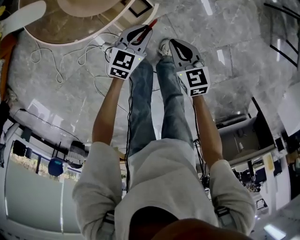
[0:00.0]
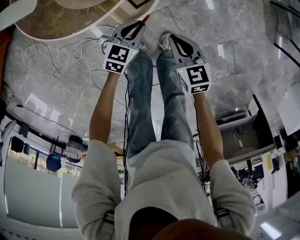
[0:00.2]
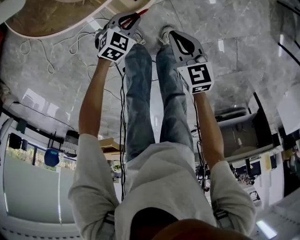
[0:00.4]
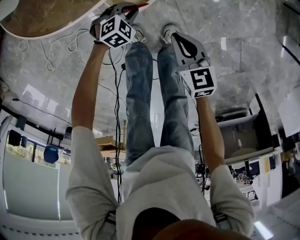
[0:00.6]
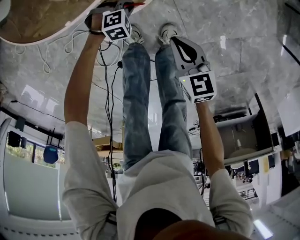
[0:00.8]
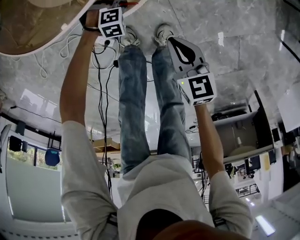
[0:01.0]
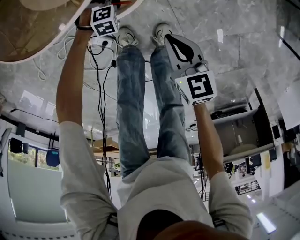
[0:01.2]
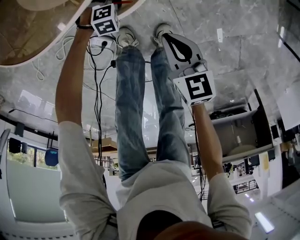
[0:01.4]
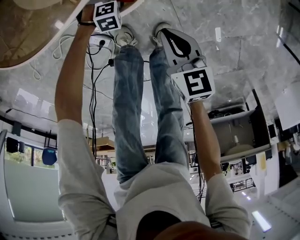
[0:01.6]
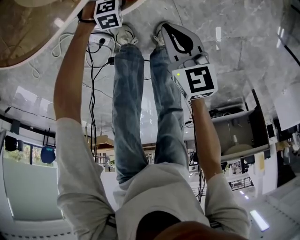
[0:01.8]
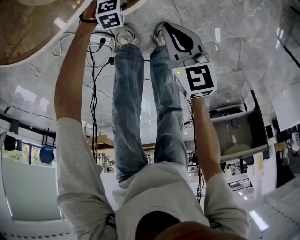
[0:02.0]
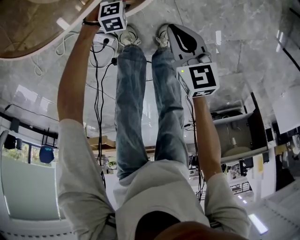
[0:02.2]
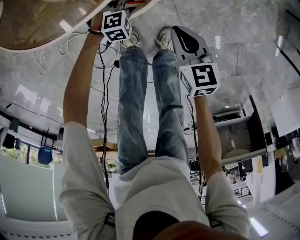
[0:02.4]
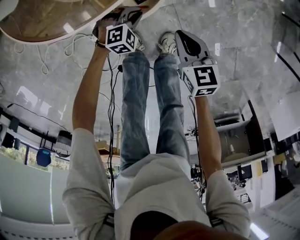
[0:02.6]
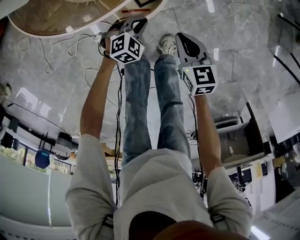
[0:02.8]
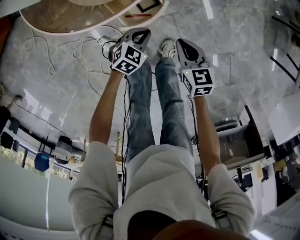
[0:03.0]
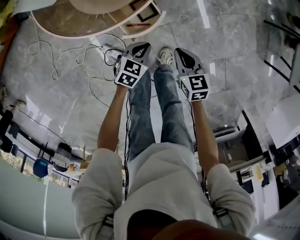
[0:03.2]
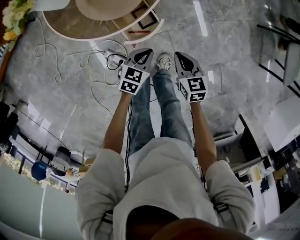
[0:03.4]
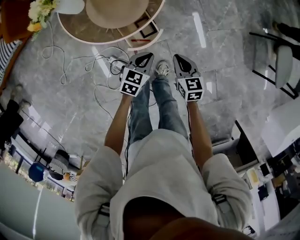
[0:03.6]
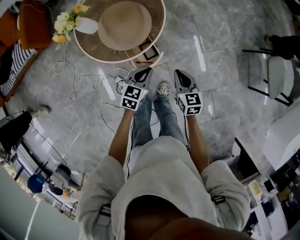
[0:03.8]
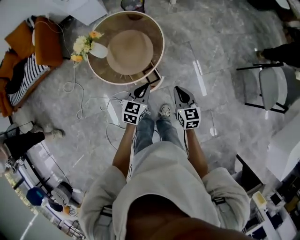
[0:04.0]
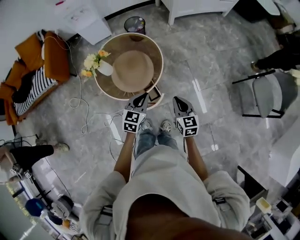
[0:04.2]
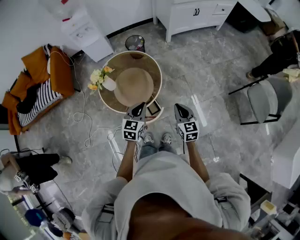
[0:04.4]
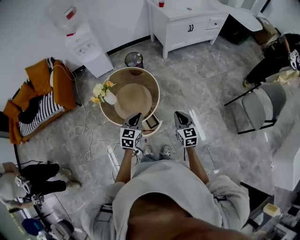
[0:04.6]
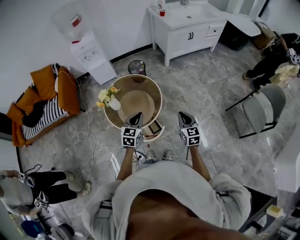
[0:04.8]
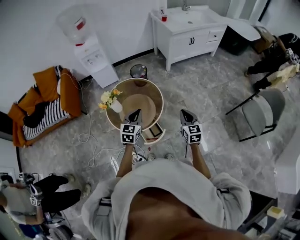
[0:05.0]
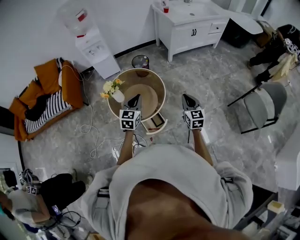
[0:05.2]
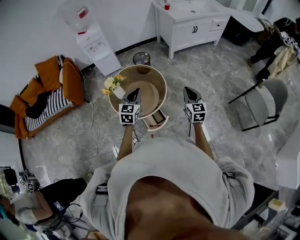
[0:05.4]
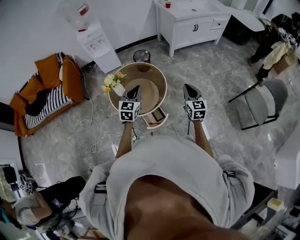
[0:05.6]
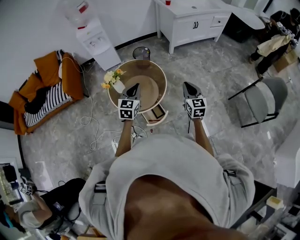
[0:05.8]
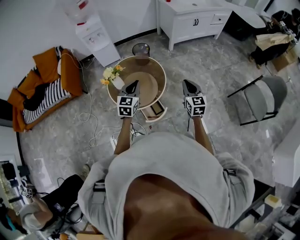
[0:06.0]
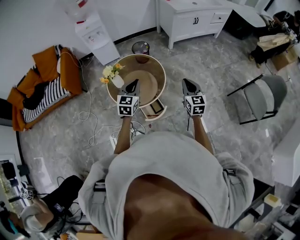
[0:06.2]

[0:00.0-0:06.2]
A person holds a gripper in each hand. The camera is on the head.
0:00.0 to 0:01.6: The left gripper goes approximately 35 cm downward, and points its fingers approximately 40 degrees further downward; the right gripper shifts roughly 15 cm downward.
0:01.6 to 0:03.2: The left gripper shifts some 35 cm upward, twists approximately 50 degrees counterclockwise, seen from behind, and opens, then closes once more, while the right gripper heads upward, covering roughly 15 cm.
0:03.2 to 0:04.6: The grippers both shift upward by about 50 cm. The right gripper rotates some 30 degrees. The left gripper turns by approximately 30 degrees.
0:04.6 to 0:06.2: The right gripper is displaced upward by roughly 10 cm; the left gripper is displaced upward and to the left by approximately 10 cm.

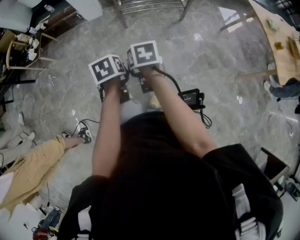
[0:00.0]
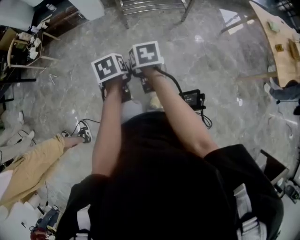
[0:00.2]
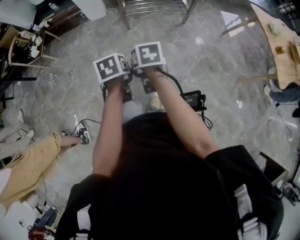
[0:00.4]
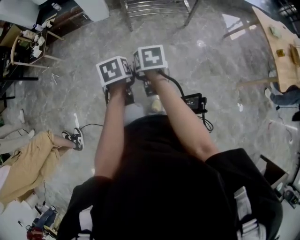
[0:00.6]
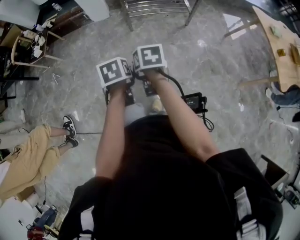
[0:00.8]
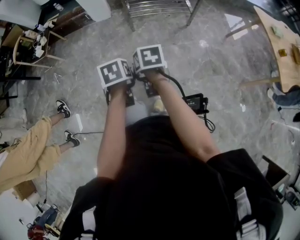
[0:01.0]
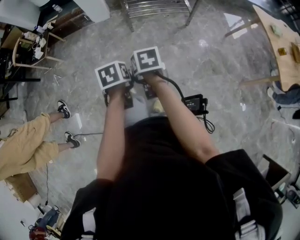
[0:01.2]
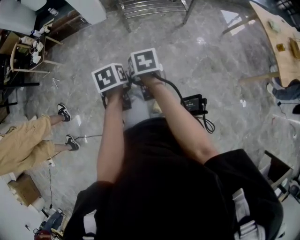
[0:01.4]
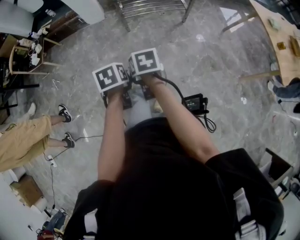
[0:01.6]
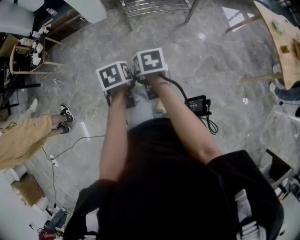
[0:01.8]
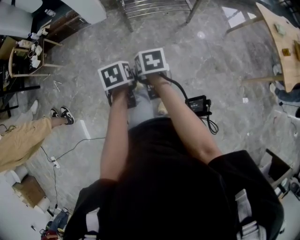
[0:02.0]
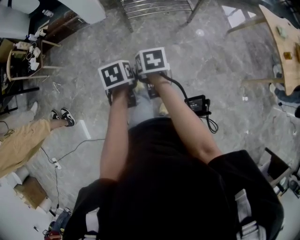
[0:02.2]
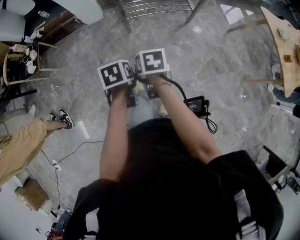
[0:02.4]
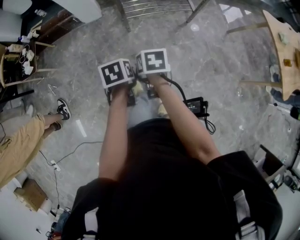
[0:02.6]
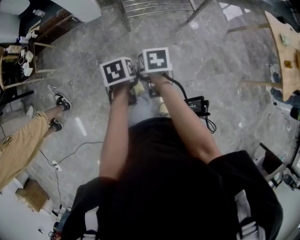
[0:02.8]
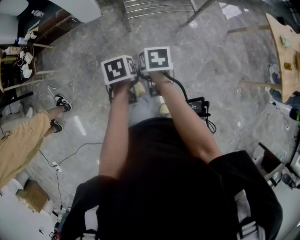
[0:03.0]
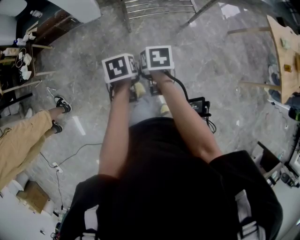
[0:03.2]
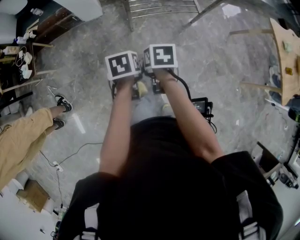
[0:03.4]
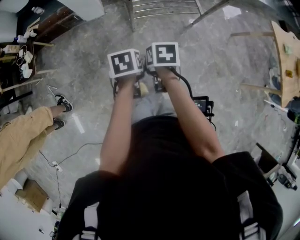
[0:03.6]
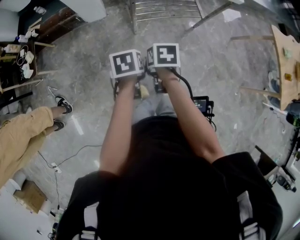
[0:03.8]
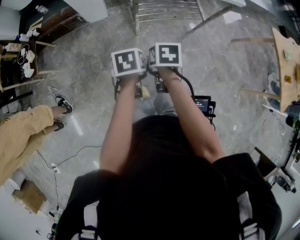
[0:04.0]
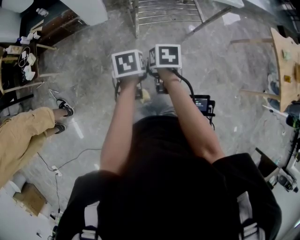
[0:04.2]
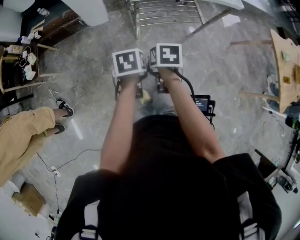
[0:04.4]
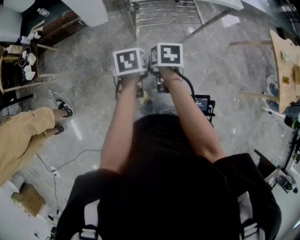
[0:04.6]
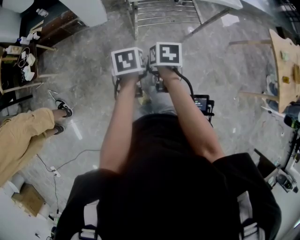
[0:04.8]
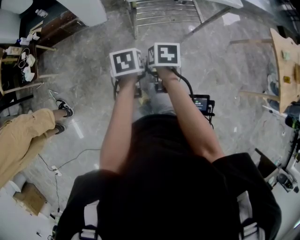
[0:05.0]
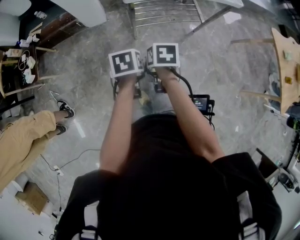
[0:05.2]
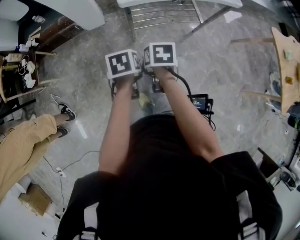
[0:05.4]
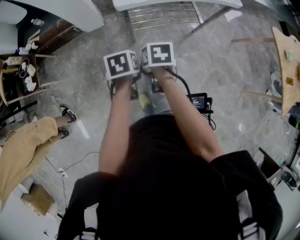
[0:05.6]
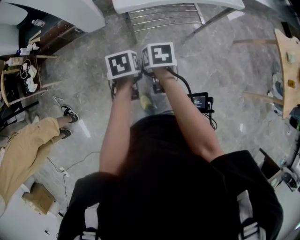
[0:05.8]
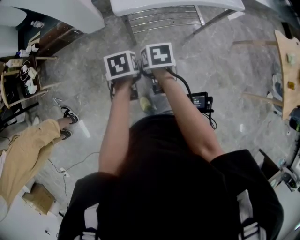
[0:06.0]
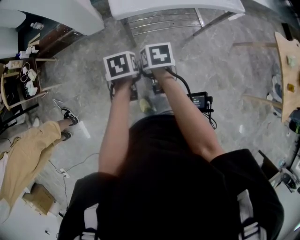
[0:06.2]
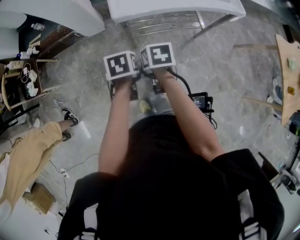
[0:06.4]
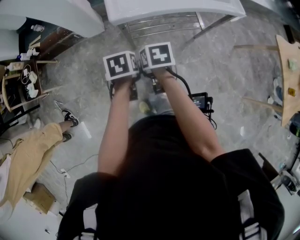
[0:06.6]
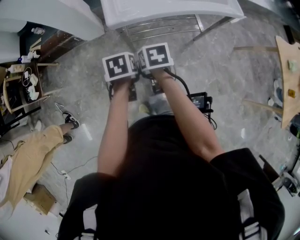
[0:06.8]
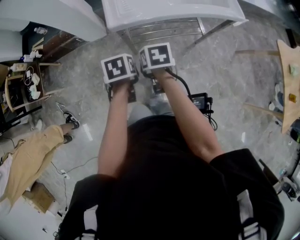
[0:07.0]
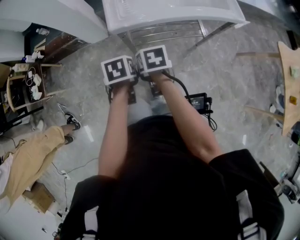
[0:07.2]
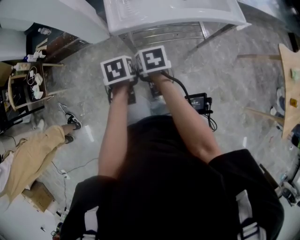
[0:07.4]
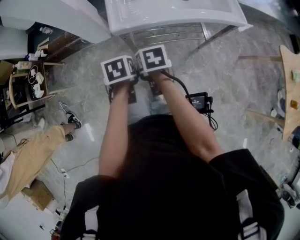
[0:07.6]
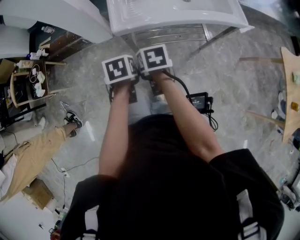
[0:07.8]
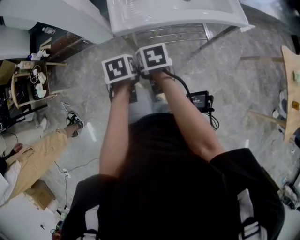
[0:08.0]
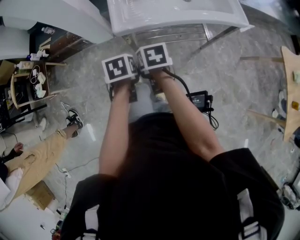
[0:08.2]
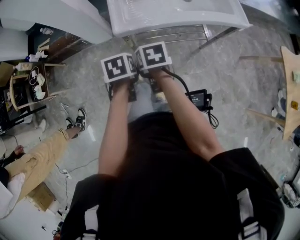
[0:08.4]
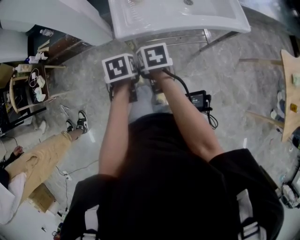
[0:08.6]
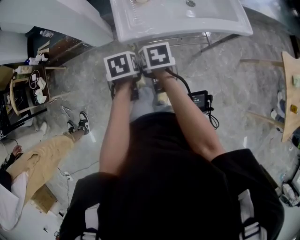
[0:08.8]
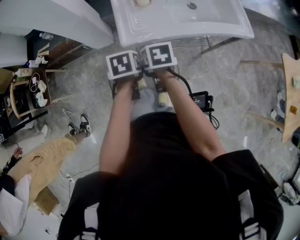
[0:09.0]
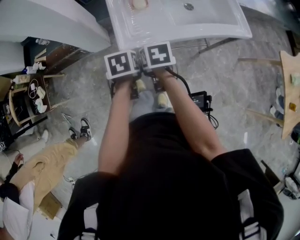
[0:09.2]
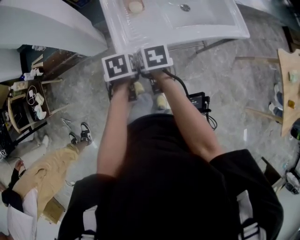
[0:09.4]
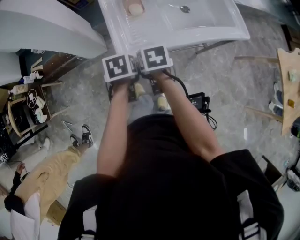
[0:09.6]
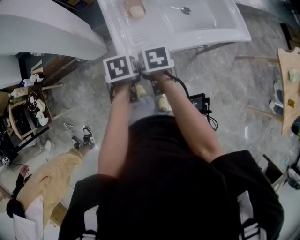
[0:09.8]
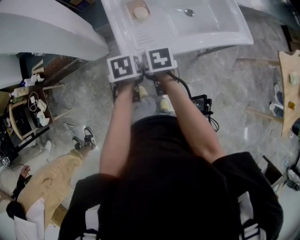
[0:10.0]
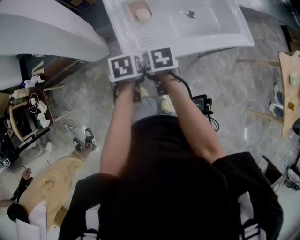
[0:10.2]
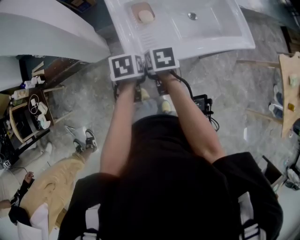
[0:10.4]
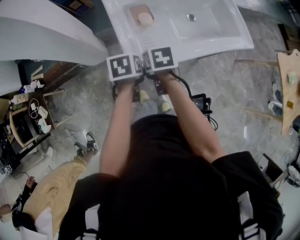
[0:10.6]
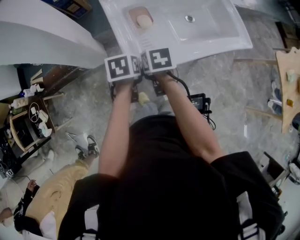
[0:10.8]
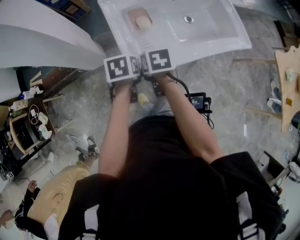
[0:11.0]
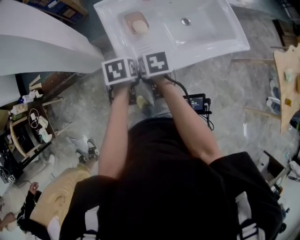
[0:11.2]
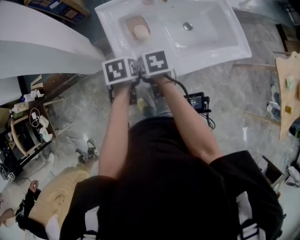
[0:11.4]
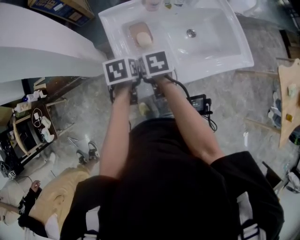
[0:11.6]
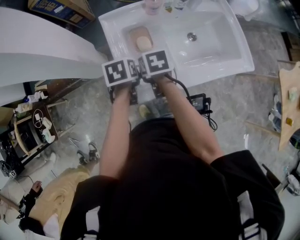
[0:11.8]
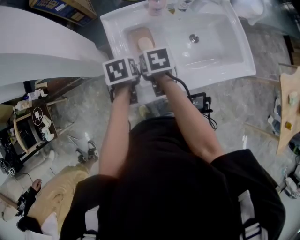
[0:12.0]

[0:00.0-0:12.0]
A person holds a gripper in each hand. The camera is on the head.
0:00.0 to 0:01.6: The grippers make only small movements.
0:01.6 to 0:03.0: Both grippers move forward, some 25 cm.
0:03.0 to 0:04.4: The right gripper shifts about 10 cm forward and to the left, while the left gripper travels forward by some 10 cm.
0:04.4 to 0:06.0: The two grippers go approximately 10 cm forward.
0:06.0 to 0:07.6: The right gripper is displaced forward by some 10 cm; the left gripper is displaced forward and to the right by some 10 cm.
0:07.6 to 0:09.0: The grippers both shift forward by some 10 cm.
0:09.0 to 0:10.4: The grippers both shift forward by some 10 cm. The left gripper opens.
0:10.4 to 0:12.0: The grippers both shift forward by about 15 cm. The left gripper closes its fingers.

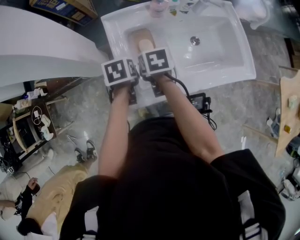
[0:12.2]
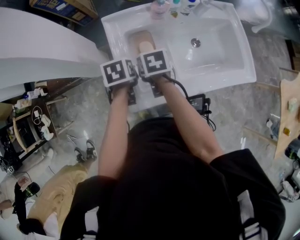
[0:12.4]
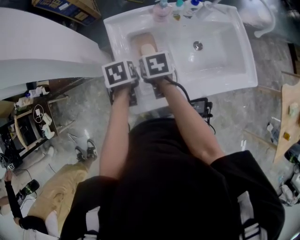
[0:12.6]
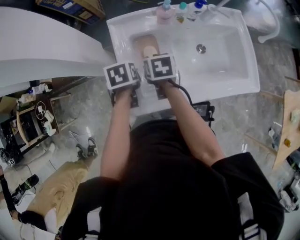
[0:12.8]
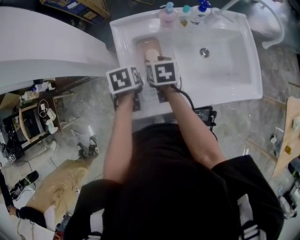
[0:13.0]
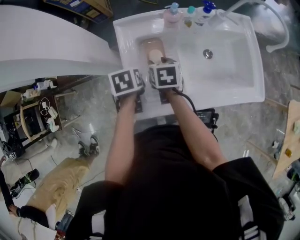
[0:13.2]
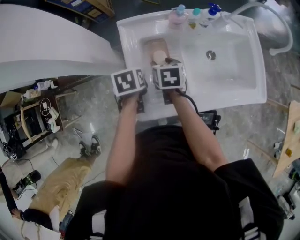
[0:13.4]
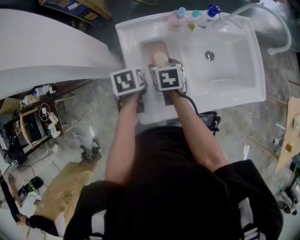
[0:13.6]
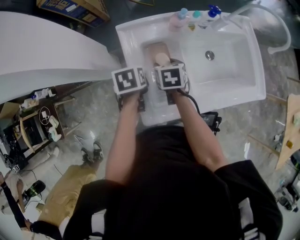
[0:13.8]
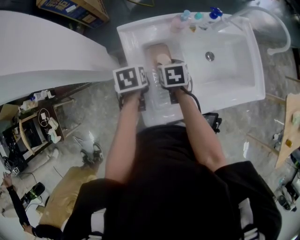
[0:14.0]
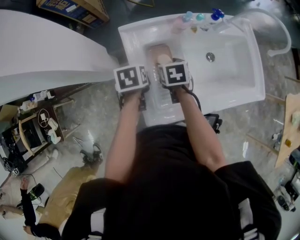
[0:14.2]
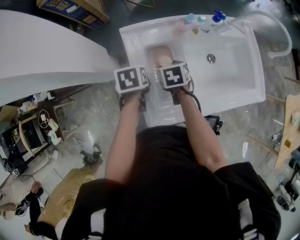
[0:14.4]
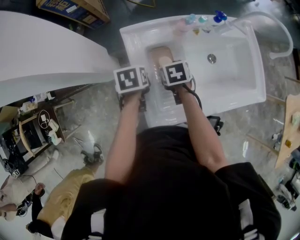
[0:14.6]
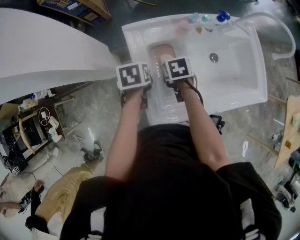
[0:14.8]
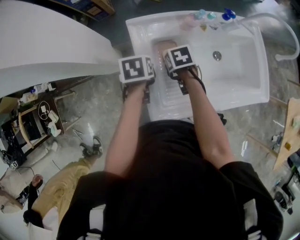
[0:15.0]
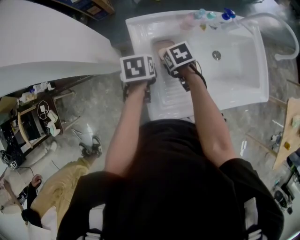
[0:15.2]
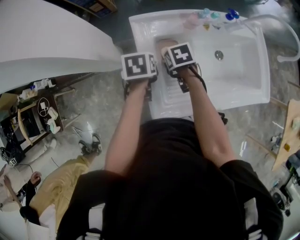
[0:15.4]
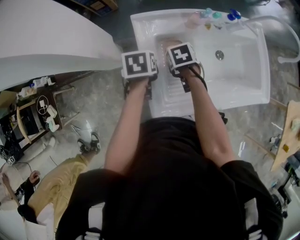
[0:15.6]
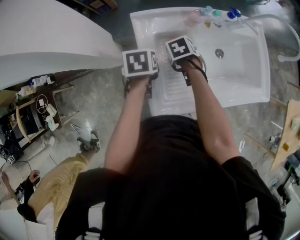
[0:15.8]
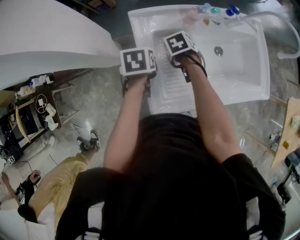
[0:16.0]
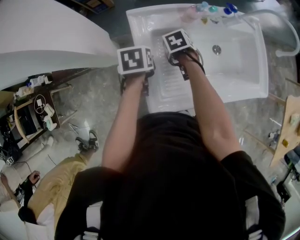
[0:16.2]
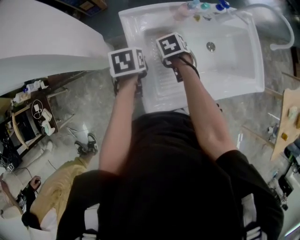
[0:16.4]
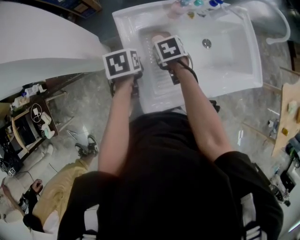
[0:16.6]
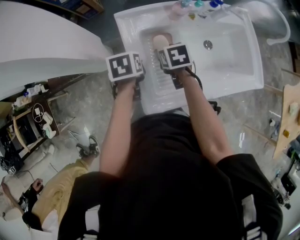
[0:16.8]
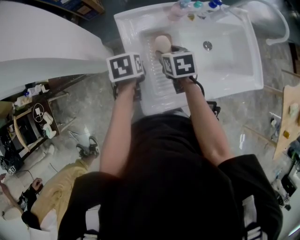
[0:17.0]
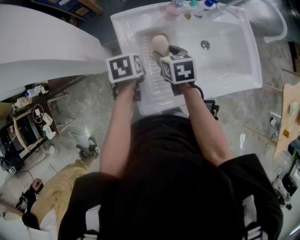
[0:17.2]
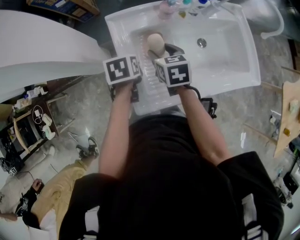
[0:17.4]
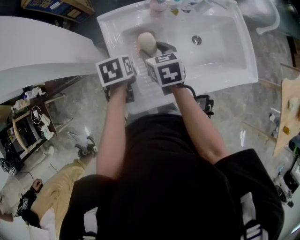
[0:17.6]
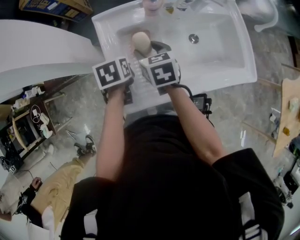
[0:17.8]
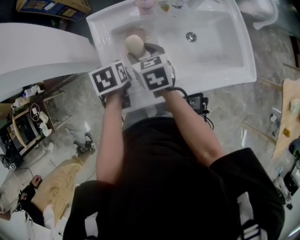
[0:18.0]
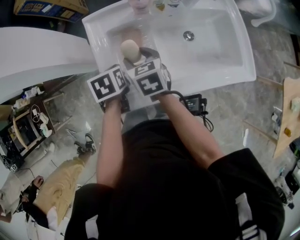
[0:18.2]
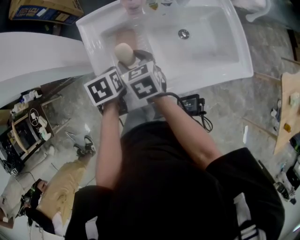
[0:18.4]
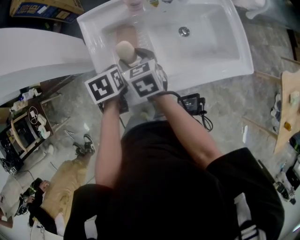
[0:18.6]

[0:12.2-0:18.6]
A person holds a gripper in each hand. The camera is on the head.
0:12.2 to 0:13.8: Both grippers travel together forward, about 5 cm. The right gripper opens its fingers.
0:15.4 to 0:17.0: The right gripper travels upward by some 5 cm, and swivels some 20 degrees.
0:17.0 to 0:18.6: The right gripper travels backward by about 5 cm. The left gripper is displaced to the right and backward by some 10 cm.
